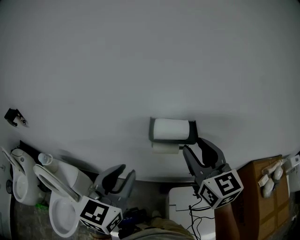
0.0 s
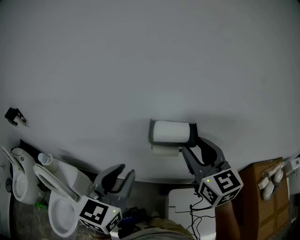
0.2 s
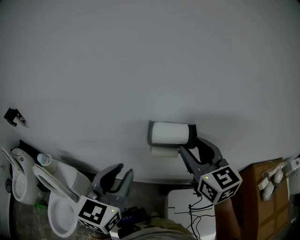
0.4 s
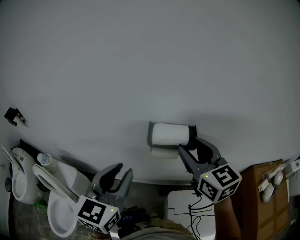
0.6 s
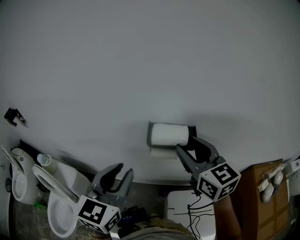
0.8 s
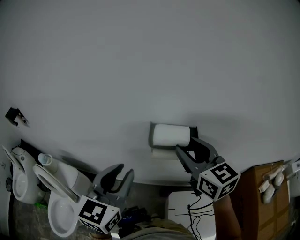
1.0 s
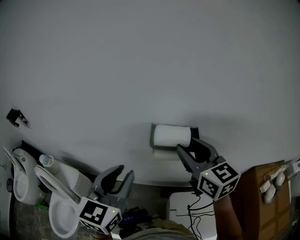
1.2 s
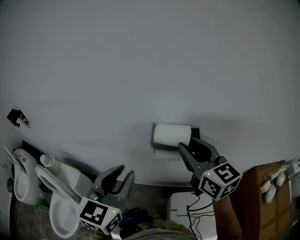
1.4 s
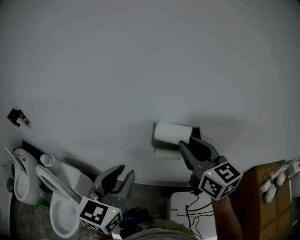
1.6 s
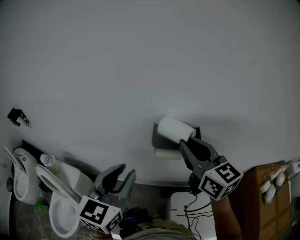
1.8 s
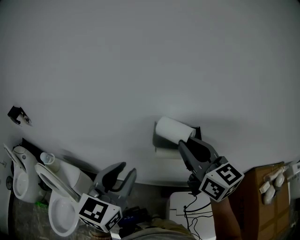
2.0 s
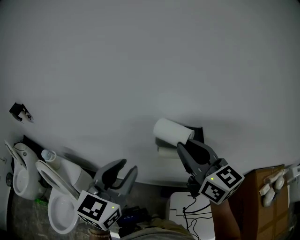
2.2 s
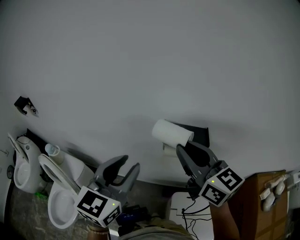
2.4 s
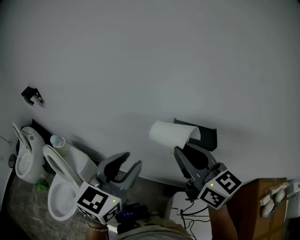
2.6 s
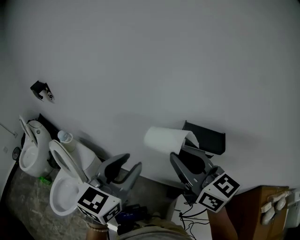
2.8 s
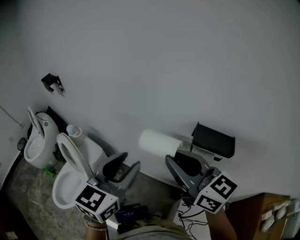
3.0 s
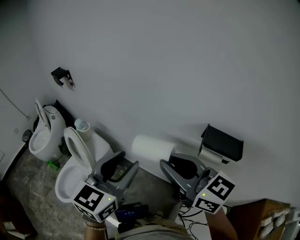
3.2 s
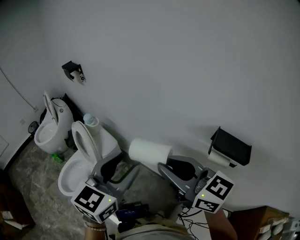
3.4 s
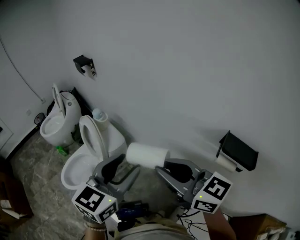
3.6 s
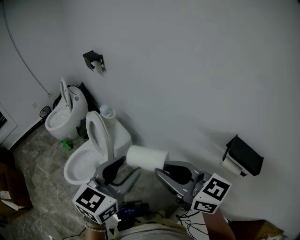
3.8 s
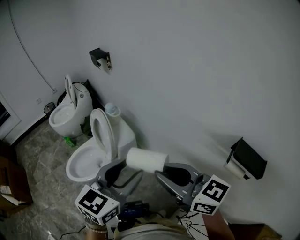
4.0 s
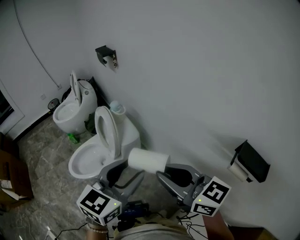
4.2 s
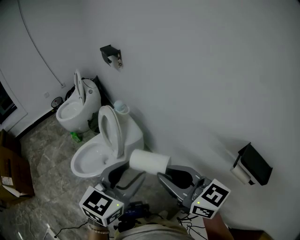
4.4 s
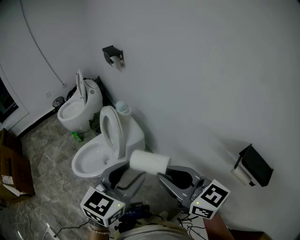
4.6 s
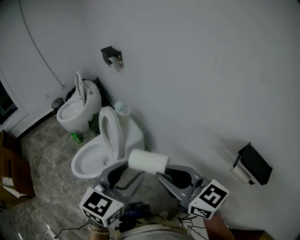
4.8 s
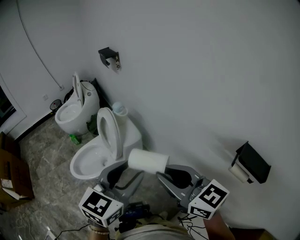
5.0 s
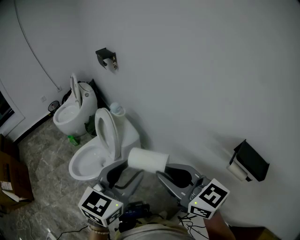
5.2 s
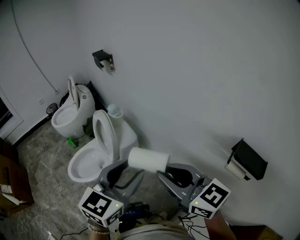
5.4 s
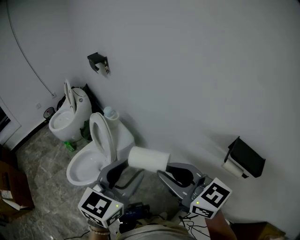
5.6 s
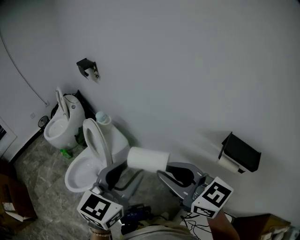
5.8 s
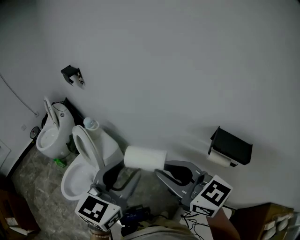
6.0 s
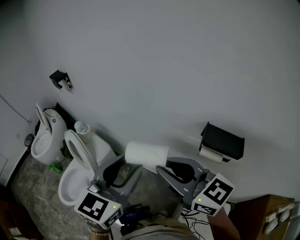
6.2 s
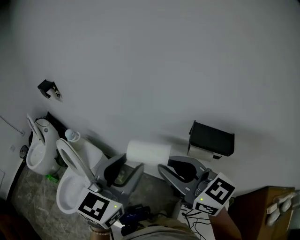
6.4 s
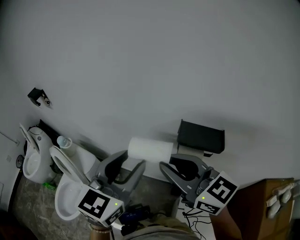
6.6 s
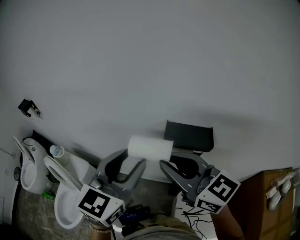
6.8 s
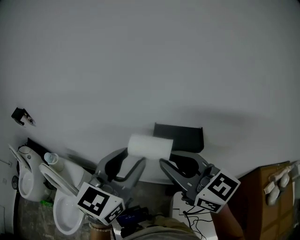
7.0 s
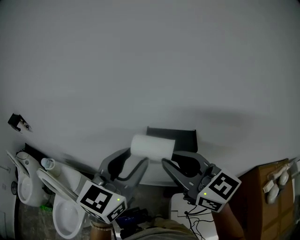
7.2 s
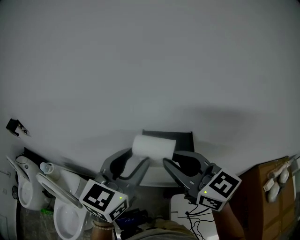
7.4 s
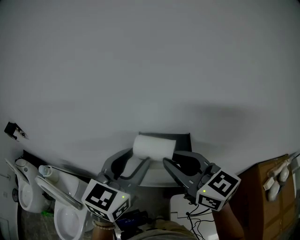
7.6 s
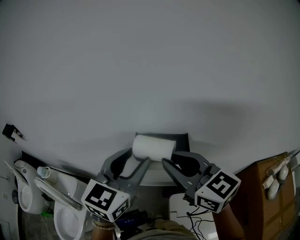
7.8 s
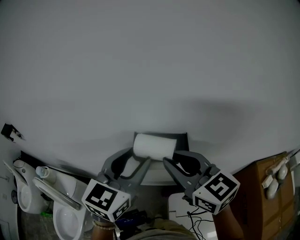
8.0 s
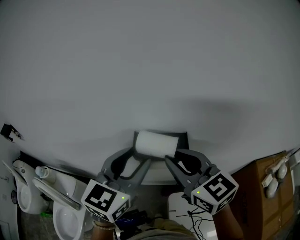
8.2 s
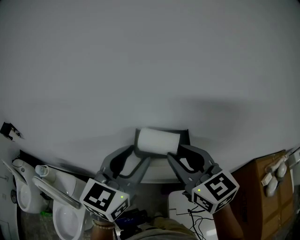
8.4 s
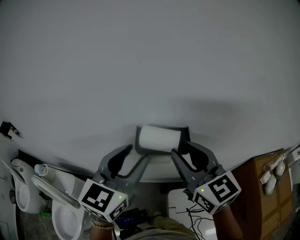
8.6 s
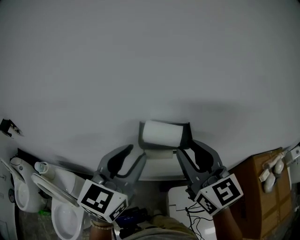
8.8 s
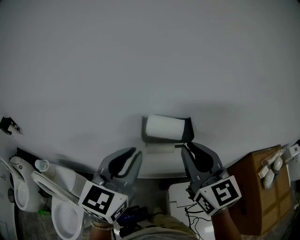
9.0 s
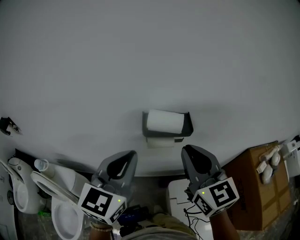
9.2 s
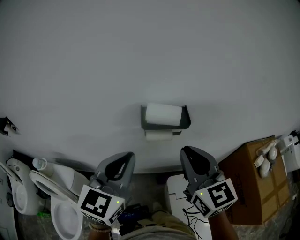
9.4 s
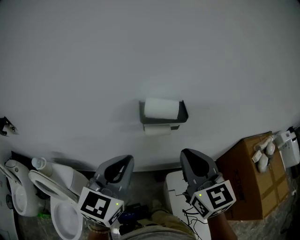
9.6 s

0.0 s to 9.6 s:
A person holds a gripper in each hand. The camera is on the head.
0.0 to 1.6 s: The grippers move only a little.
1.6 to 3.2 s: The right gripper moves about 25 cm, and turns by some 40 degrees. Meanwhile the left gripper moves some 15 cm.
3.2 to 4.8 s: Both grippers travel together to the left, approximately 15 cm. The right gripper turns by about 20 degrees.
4.8 to 6.4 s: The left gripper shifts by about 20 cm, and turns by some 30 degrees. Meanwhile the right gripper changes place by approximately 15 cm, and turns by roughly 30 degrees.
6.4 to 8.0 s: The left gripper goes about 20 cm to the right and forward, and rotates approximately 20 degrees; the right gripper is displaced to the right by some 20 cm, and turns by some 30 degrees.
8.0 to 9.6 s: The left gripper is displaced backward and to the left by roughly 15 cm, and closes up. Meanwhile the right gripper shifts about 10 cm backward, and swivels some 30 degrees.

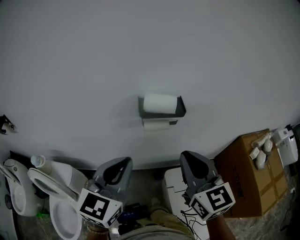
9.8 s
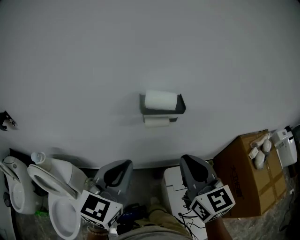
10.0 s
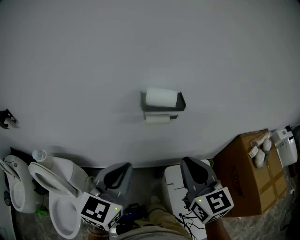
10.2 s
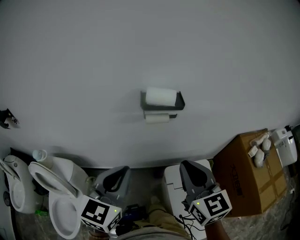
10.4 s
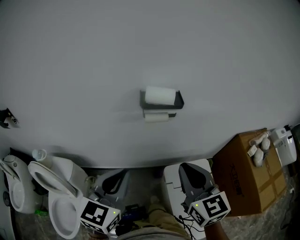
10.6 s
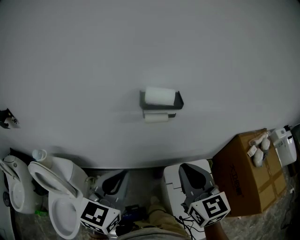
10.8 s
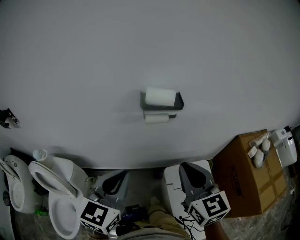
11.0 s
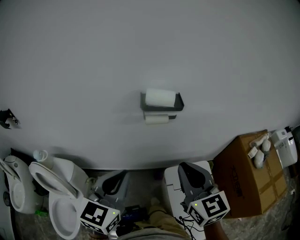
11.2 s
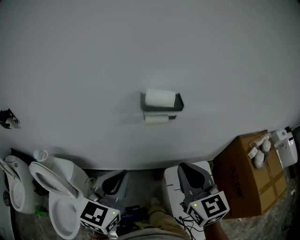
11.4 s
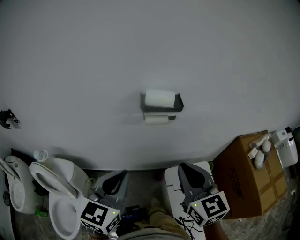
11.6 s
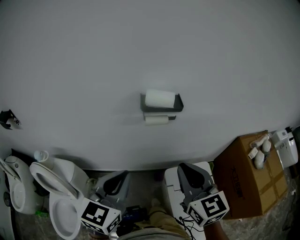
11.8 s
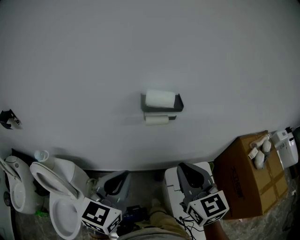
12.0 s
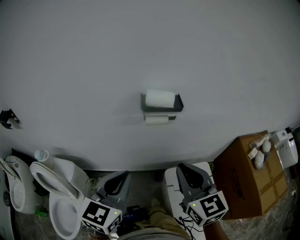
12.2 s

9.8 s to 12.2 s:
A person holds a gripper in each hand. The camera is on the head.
9.8 to 11.0 s: The grippers both shift backward by about 5 cm.
11.0 to 12.2 s: Both grippers stay about where they are.

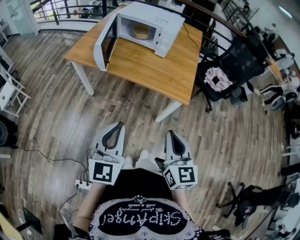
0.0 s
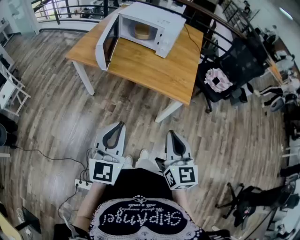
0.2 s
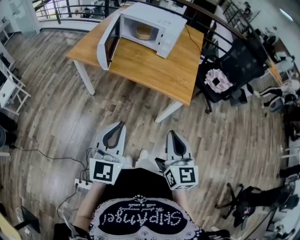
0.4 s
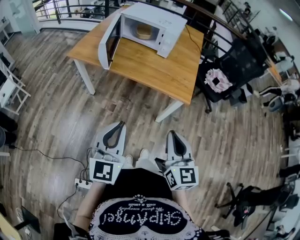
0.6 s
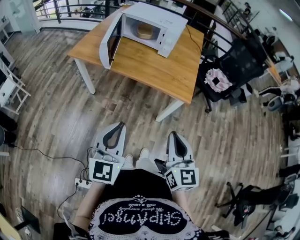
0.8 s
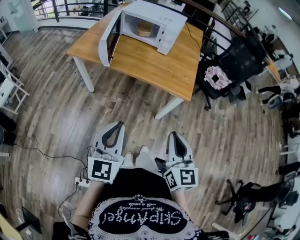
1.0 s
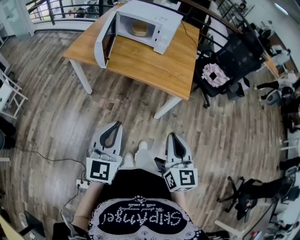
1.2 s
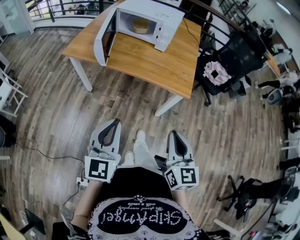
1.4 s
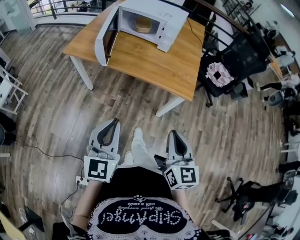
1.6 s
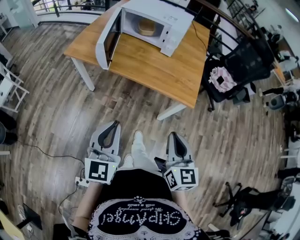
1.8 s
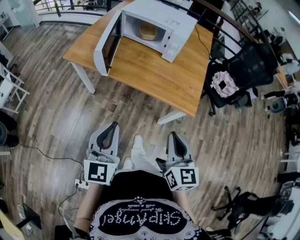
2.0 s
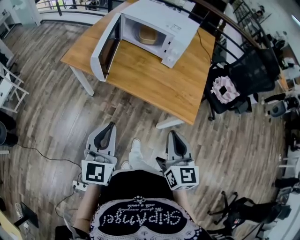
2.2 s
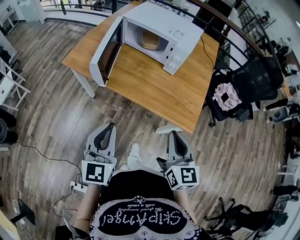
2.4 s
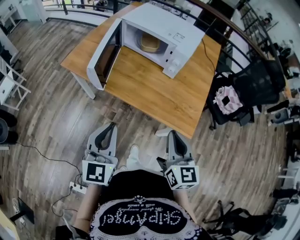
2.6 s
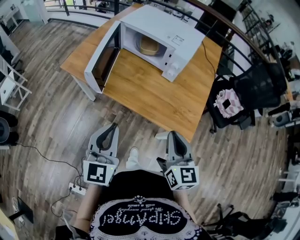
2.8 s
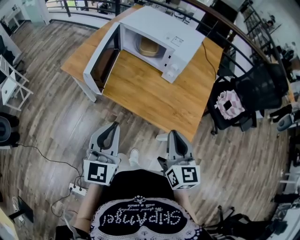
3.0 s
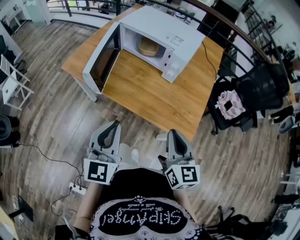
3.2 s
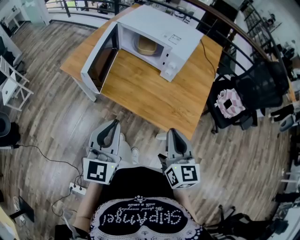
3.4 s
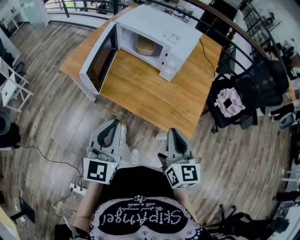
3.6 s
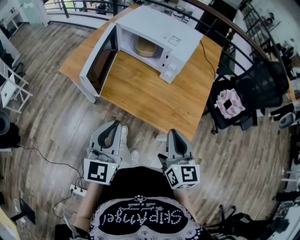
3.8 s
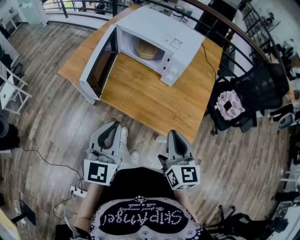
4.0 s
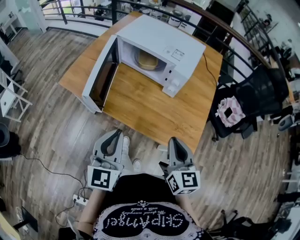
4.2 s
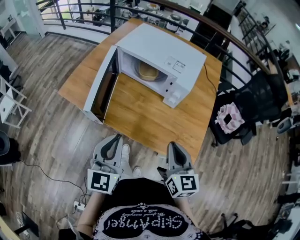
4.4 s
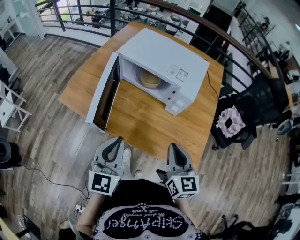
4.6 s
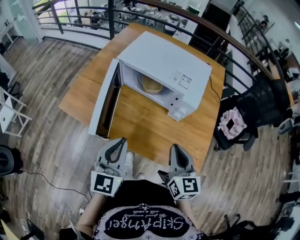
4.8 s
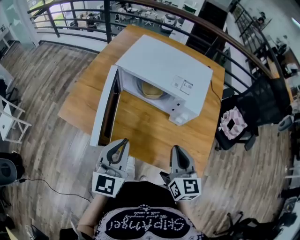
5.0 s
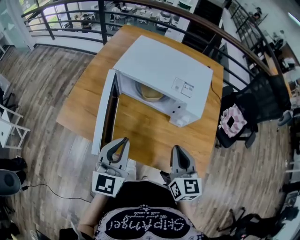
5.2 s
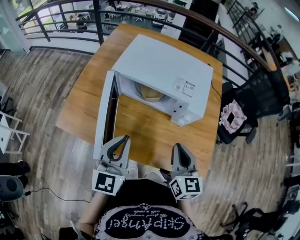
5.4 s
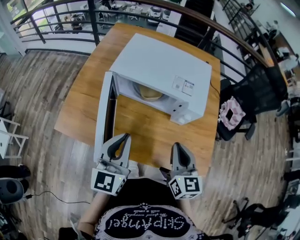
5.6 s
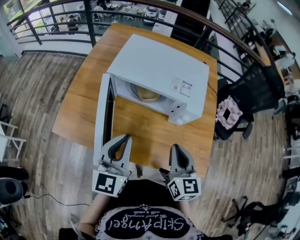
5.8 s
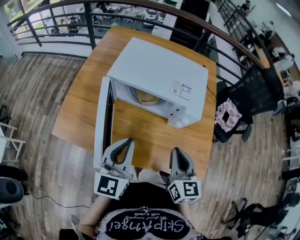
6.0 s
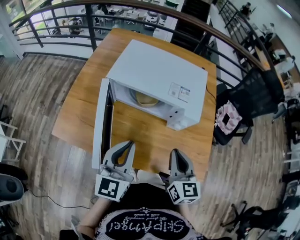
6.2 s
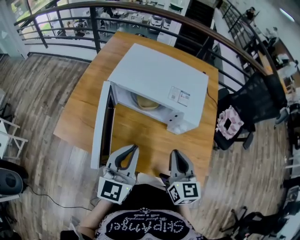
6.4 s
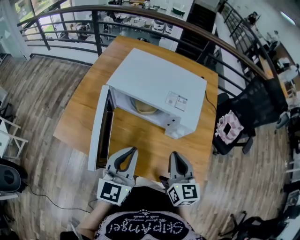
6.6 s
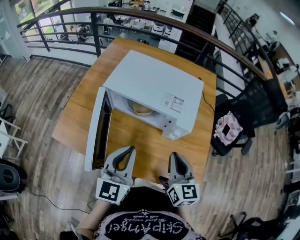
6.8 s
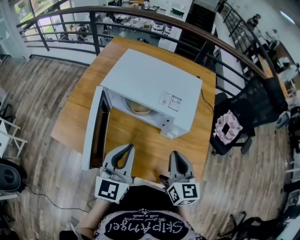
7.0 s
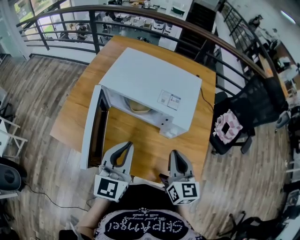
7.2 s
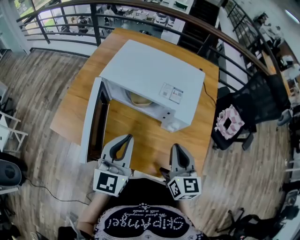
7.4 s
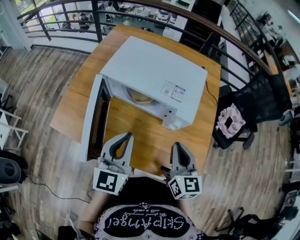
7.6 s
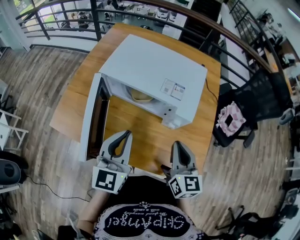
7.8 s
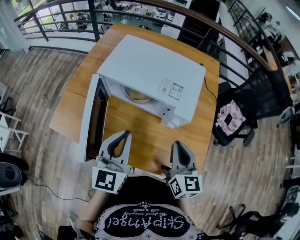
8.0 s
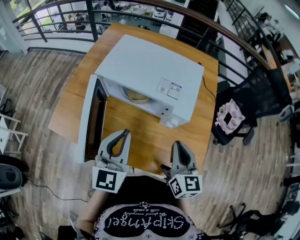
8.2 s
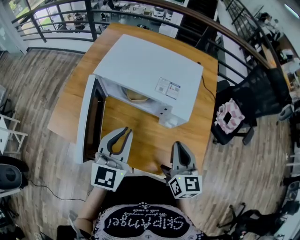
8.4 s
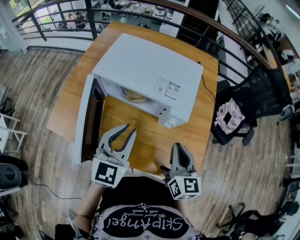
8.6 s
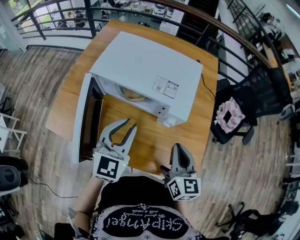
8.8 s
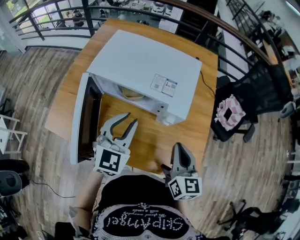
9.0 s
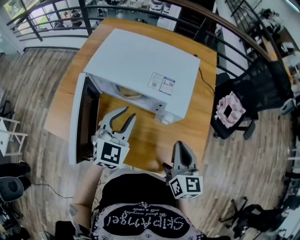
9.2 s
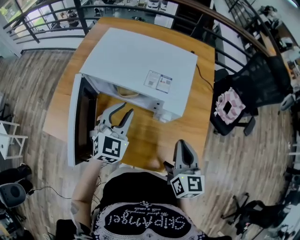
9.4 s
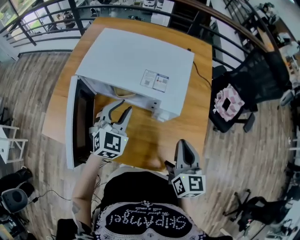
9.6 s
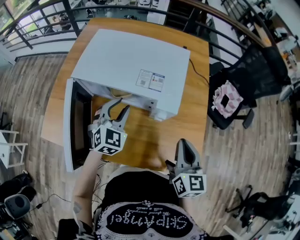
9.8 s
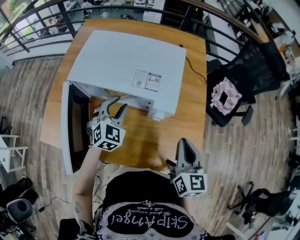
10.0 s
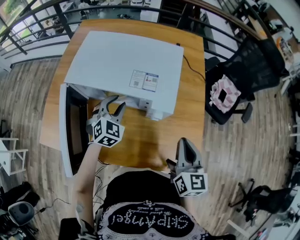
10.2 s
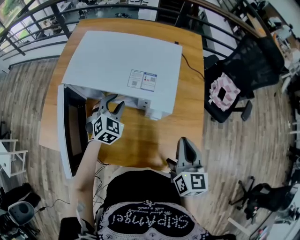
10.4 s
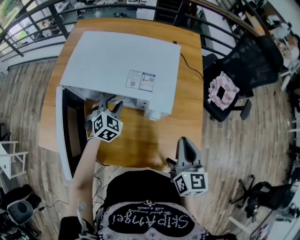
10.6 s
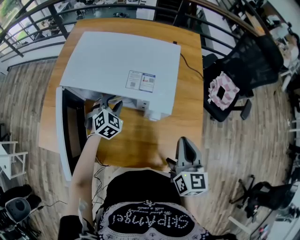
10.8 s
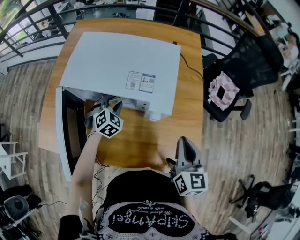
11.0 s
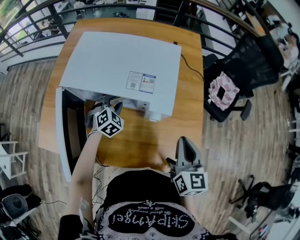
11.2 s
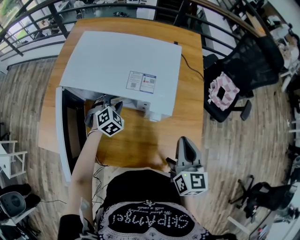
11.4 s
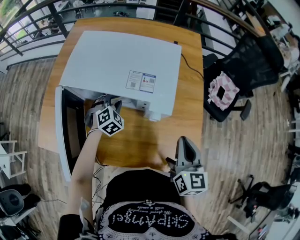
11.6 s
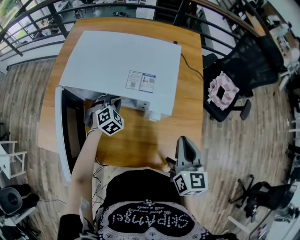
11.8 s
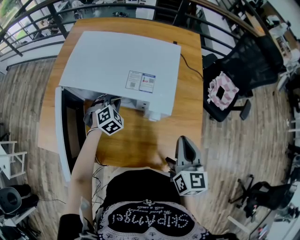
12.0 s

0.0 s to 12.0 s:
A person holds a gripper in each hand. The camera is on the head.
0.0 to 1.6 s: The grippers make only small movements.
1.6 to 3.0 s: Both grippers move forward, roughly 20 cm.
3.0 to 4.4 s: Both grippers travel together forward, about 10 cm.
4.4 to 6.0 s: The left gripper travels forward by about 15 cm. Meanwhile the right gripper moves forward and to the left, about 15 cm.
6.0 to 7.6 s: The left gripper shifts by roughly 5 cm, while the right gripper changes place by some 5 cm.
7.6 to 9.0 s: The left gripper is displaced forward by roughly 5 cm, turns by about 20 degrees, and opens its fingers.
9.0 to 10.4 s: The right gripper moves to the right, roughly 5 cm. Meanwhile the left gripper goes about 20 cm downward and forward, and changes its angle by about 30 degrees.
10.4 to 12.0 s: The left gripper shifts approximately 5 cm downward, and closes up.
